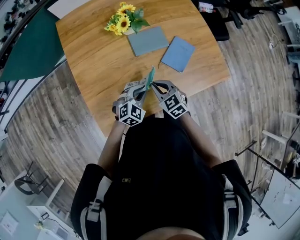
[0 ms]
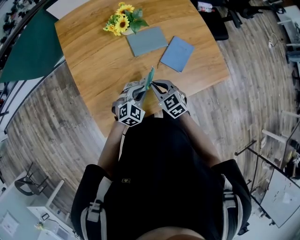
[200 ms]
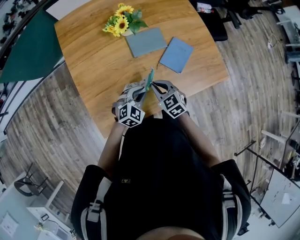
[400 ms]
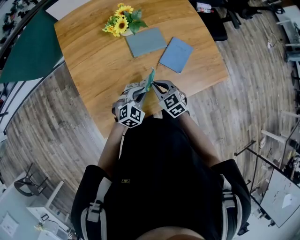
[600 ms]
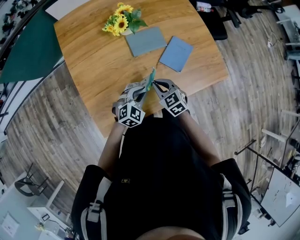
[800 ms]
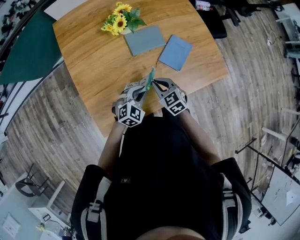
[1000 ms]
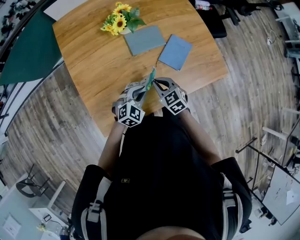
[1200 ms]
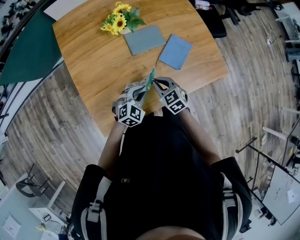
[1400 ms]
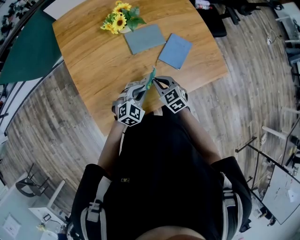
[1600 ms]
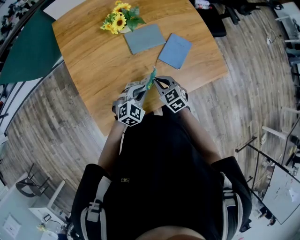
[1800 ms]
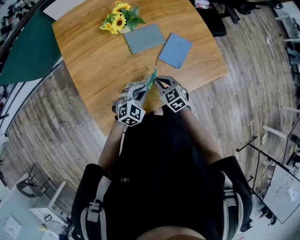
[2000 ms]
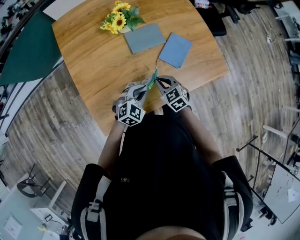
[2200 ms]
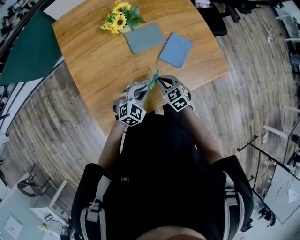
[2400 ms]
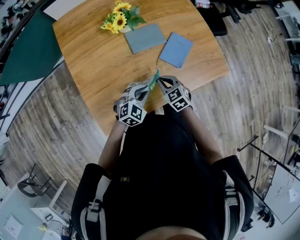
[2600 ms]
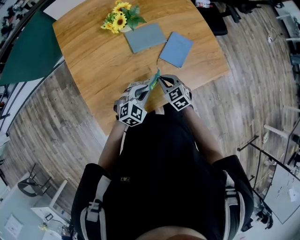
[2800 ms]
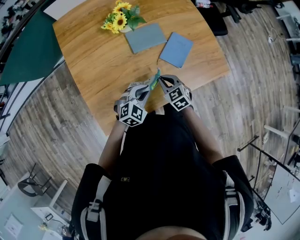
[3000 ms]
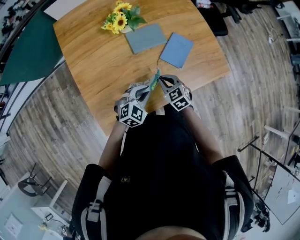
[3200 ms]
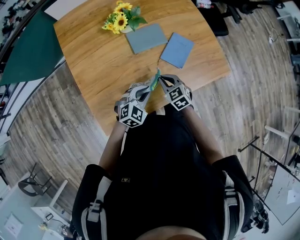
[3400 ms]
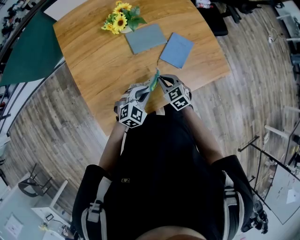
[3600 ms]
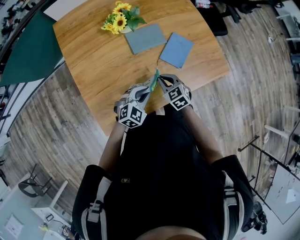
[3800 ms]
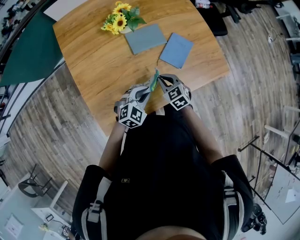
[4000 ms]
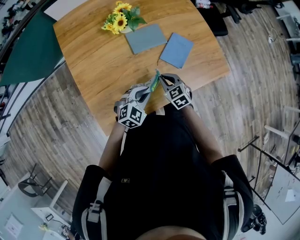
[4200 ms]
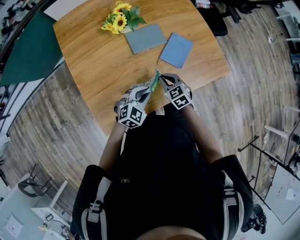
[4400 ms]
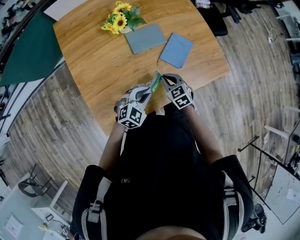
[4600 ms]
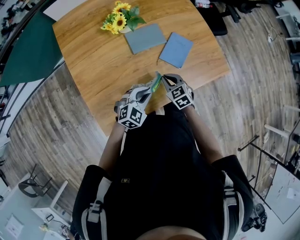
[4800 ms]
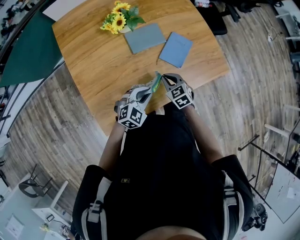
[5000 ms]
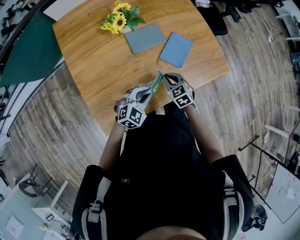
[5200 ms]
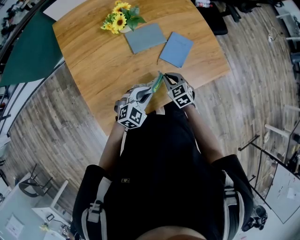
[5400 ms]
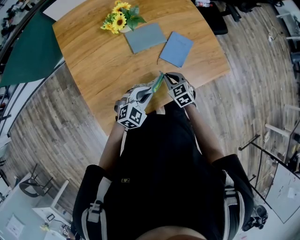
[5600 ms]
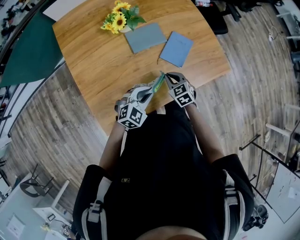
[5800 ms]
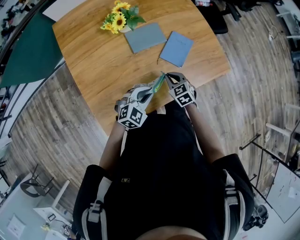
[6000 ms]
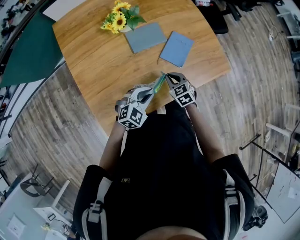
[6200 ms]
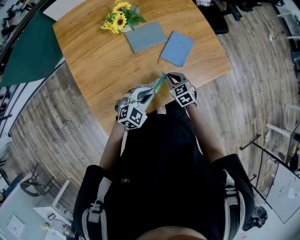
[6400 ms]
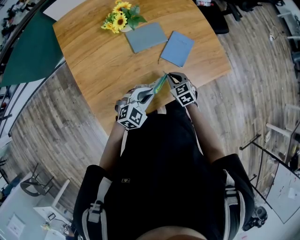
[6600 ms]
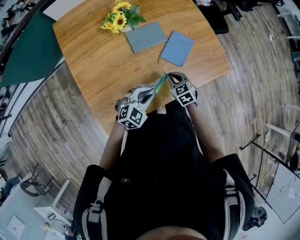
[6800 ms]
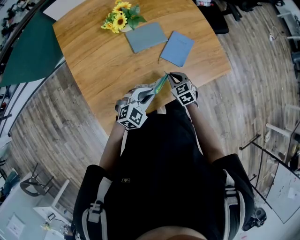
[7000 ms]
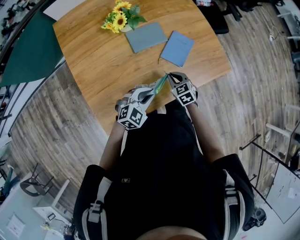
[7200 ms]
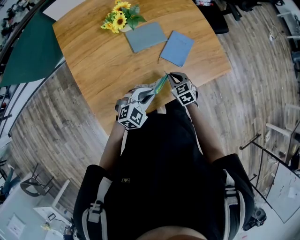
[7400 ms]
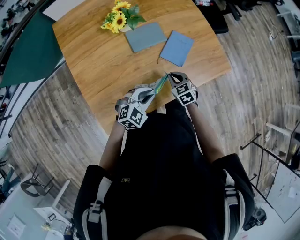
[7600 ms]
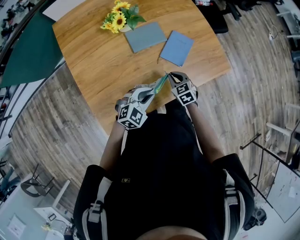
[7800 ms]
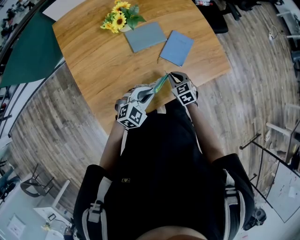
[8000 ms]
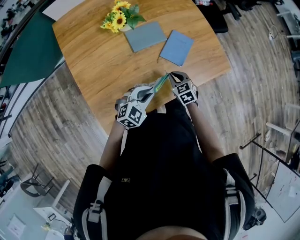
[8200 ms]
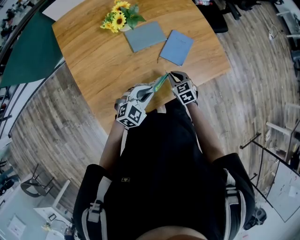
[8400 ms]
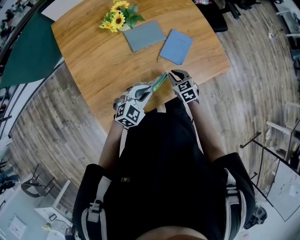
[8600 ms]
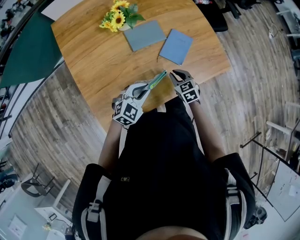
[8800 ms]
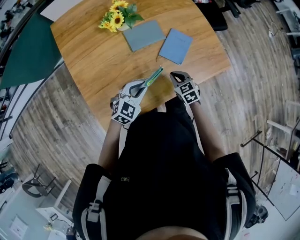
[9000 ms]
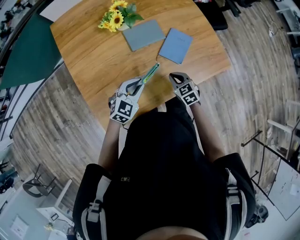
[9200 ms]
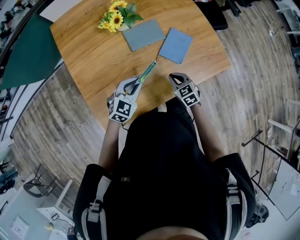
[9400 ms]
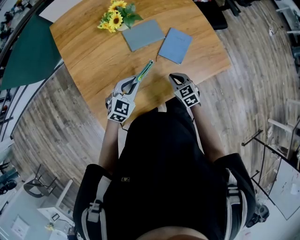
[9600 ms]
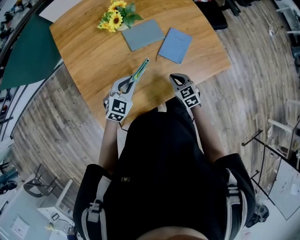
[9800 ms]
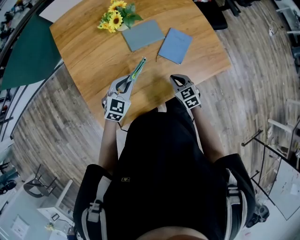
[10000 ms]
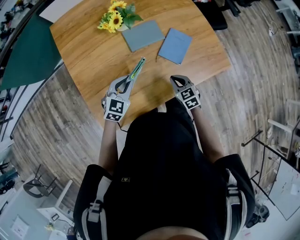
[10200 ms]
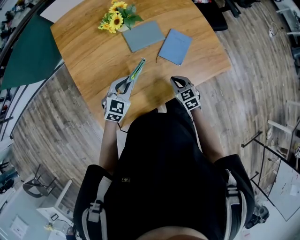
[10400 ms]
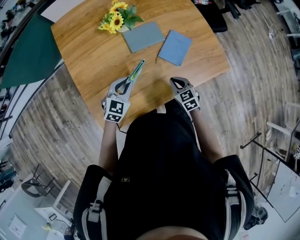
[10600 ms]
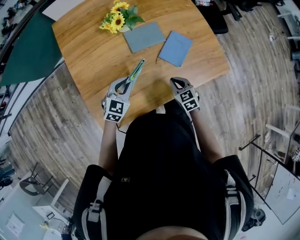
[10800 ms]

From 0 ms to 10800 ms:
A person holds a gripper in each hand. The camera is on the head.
From 0 ms to 3000 ms: The grippers stay close to where they were, moving slightly.
From 3000 ms to 6200 ms: There are only small adjustments of the grippers.
From 6200 ms to 7800 ms: The grippers move only a little.
From 7800 ms to 9200 ms: The left gripper heads to the left, covering approximately 5 cm.
From 9200 ms to 10800 ms: The left gripper moves some 5 cm.

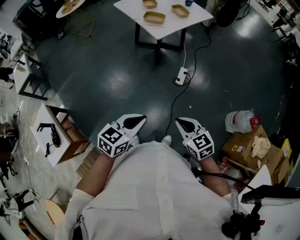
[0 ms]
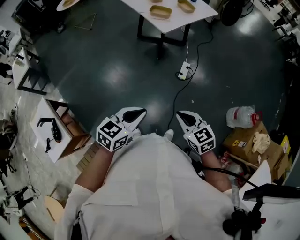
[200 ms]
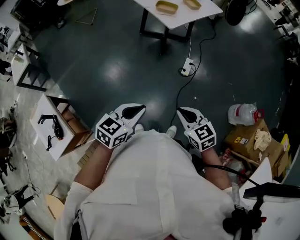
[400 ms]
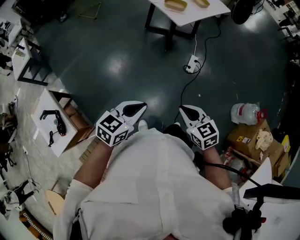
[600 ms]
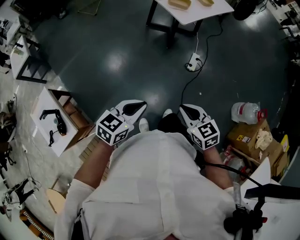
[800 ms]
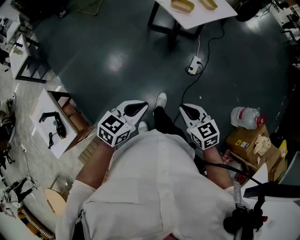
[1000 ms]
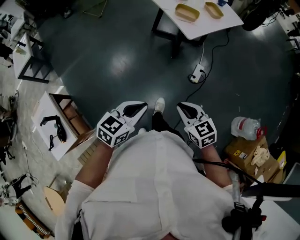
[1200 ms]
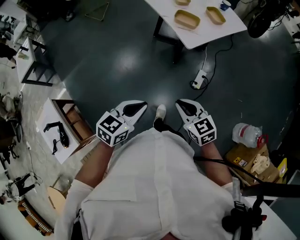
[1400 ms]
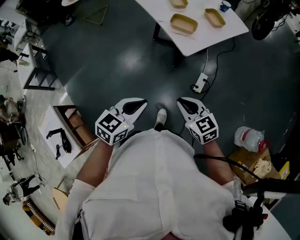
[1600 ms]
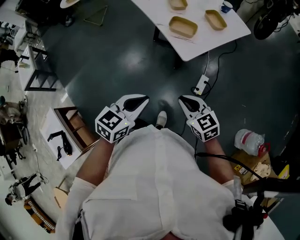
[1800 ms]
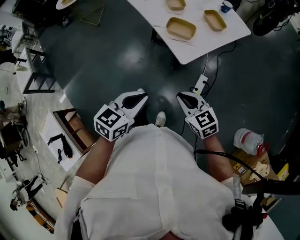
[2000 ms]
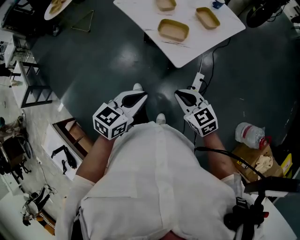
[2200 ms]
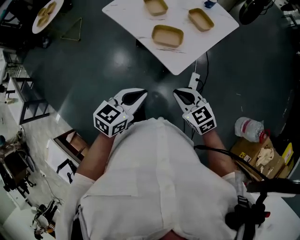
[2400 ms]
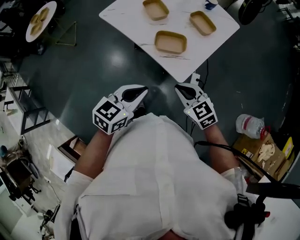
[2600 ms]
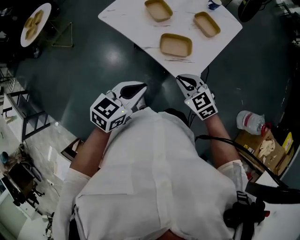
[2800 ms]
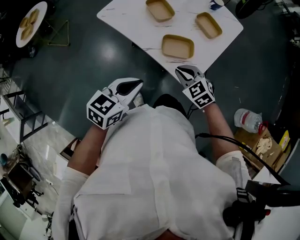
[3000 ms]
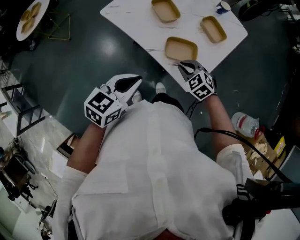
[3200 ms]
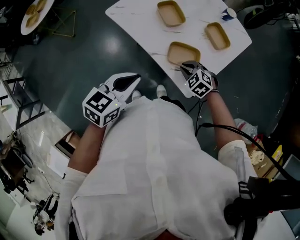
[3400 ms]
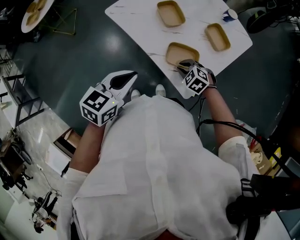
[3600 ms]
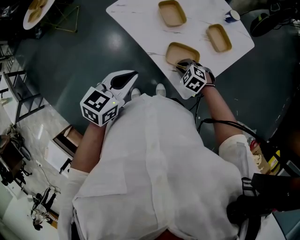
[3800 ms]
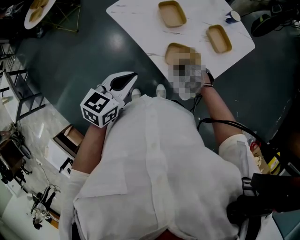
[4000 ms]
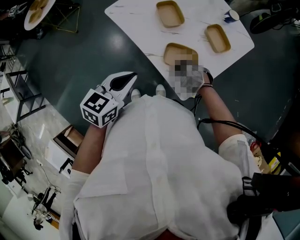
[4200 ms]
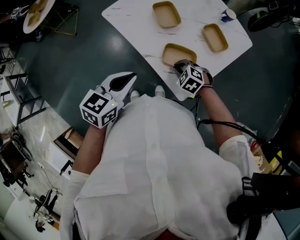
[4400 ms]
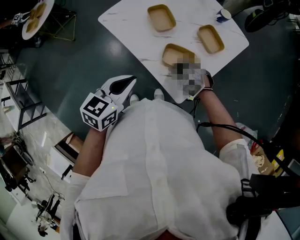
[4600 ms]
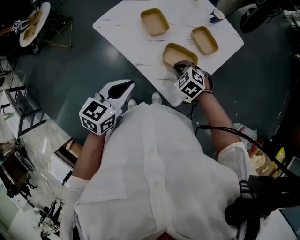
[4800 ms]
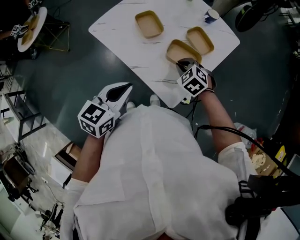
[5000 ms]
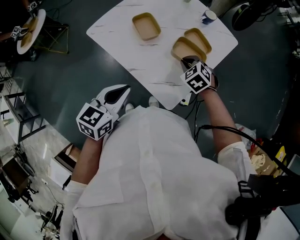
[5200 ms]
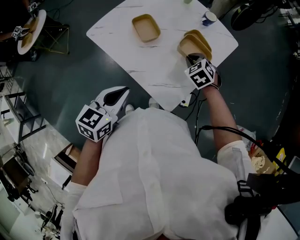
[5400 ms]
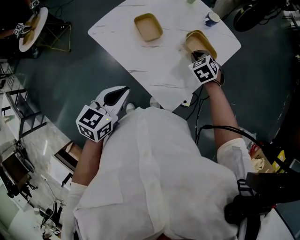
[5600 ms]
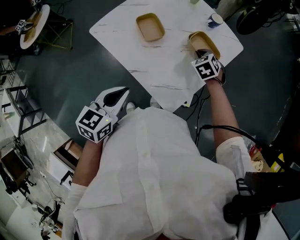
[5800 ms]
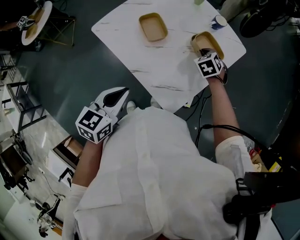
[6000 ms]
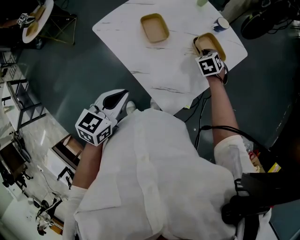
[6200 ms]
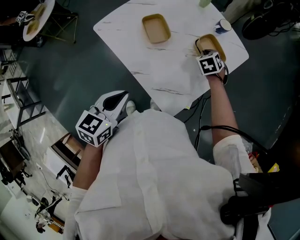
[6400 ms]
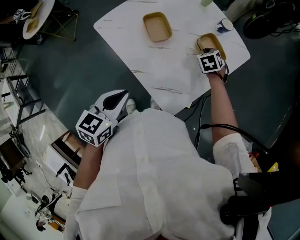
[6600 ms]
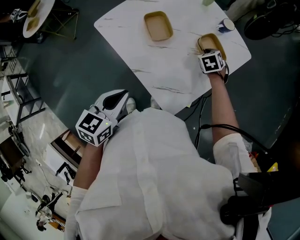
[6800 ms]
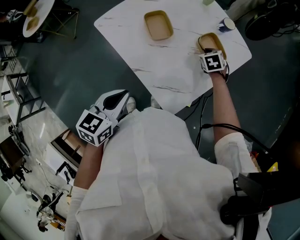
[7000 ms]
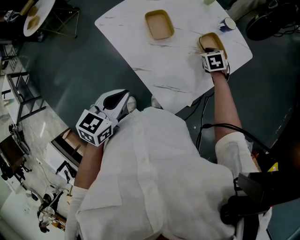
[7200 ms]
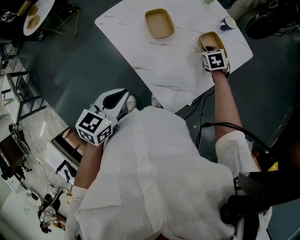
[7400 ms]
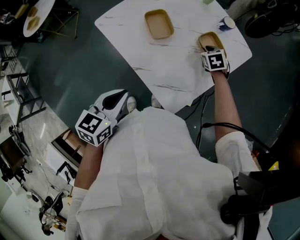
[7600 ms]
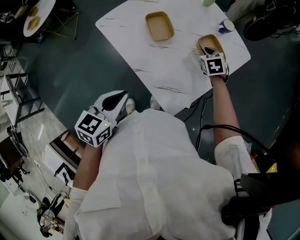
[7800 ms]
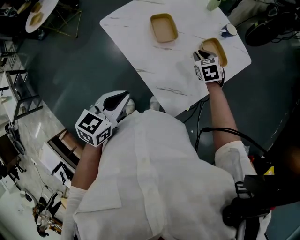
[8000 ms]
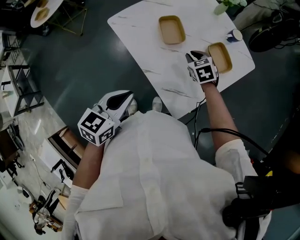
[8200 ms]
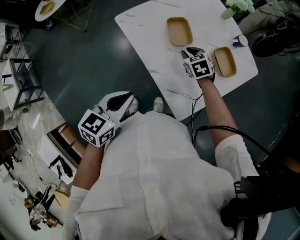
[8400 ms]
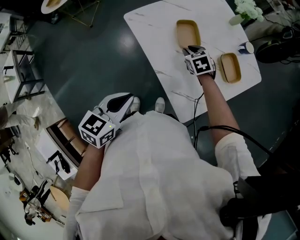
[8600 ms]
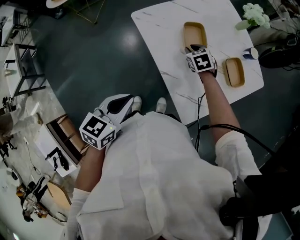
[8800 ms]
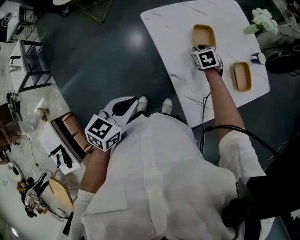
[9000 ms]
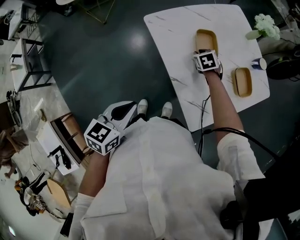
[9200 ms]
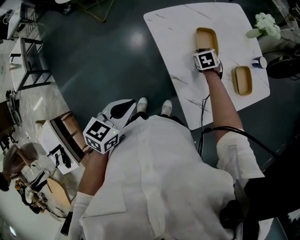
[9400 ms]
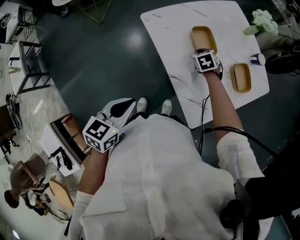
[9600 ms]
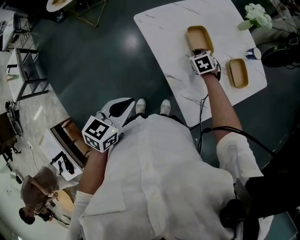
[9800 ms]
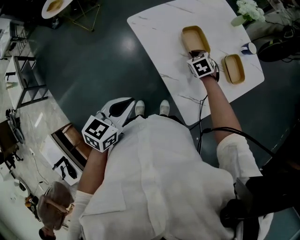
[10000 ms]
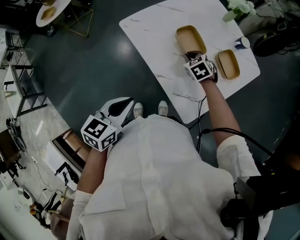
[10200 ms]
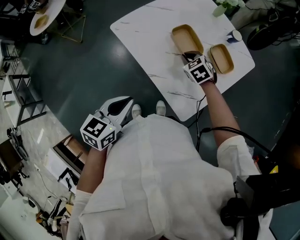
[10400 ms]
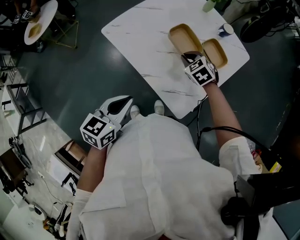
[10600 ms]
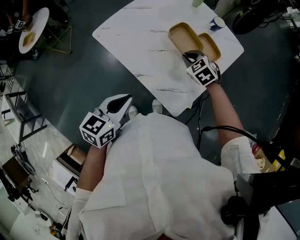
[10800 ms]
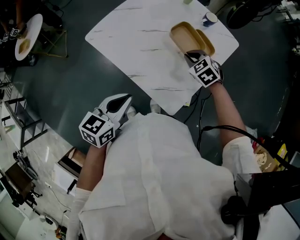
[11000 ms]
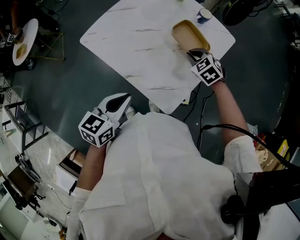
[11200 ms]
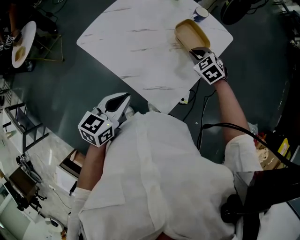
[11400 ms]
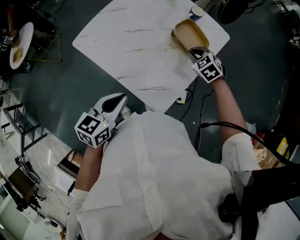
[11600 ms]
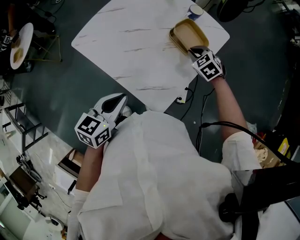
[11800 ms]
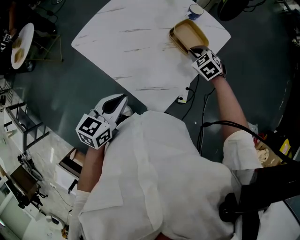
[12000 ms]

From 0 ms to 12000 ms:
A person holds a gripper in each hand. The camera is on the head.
From 0 ms to 1600 ms: The two grippers go some 30 cm forward and to the left.
From 1600 ms to 3000 ms: Both grippers travel together forward, about 35 cm. The right gripper swivels roughly 20 degrees.
From 3000 ms to 4400 ms: The left gripper heads forward, covering approximately 5 cm, while the right gripper goes some 10 cm downward and forward, and swivels roughly 30 degrees.
From 4400 ms to 6000 ms: The right gripper moves forward and to the right, roughly 25 cm, and changes its angle by roughly 40 degrees.
From 6000 ms to 7600 ms: The grippers move only a little.
From 7600 ms to 9000 ms: The right gripper moves to the left, approximately 25 cm, while the left gripper heads to the left, covering roughly 10 cm.
From 9000 ms to 10400 ms: The left gripper changes place by approximately 5 cm. Meanwhile the right gripper shifts some 10 cm backward, to the right and upward.
From 10400 ms to 12000 ms: The left gripper moves to the right, about 15 cm; the right gripper is displaced to the right by about 25 cm.

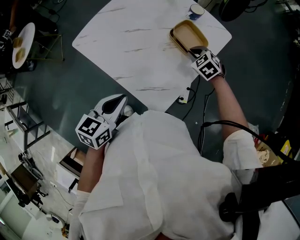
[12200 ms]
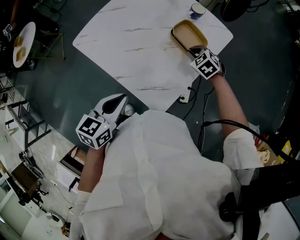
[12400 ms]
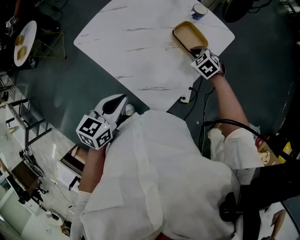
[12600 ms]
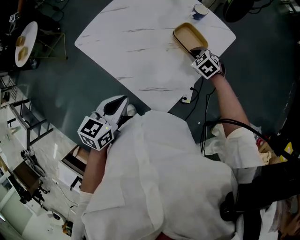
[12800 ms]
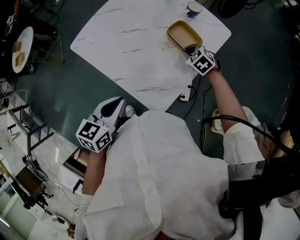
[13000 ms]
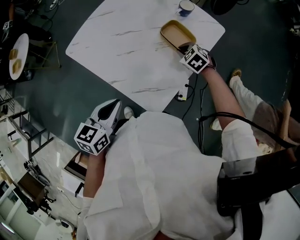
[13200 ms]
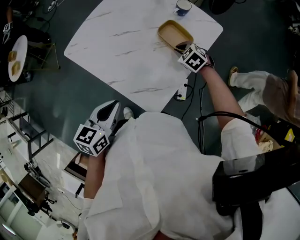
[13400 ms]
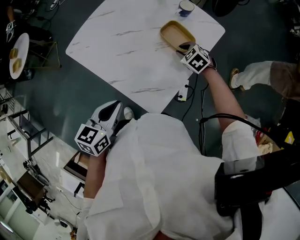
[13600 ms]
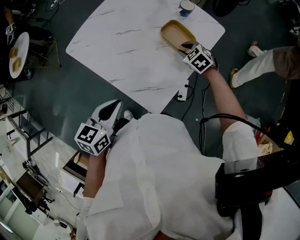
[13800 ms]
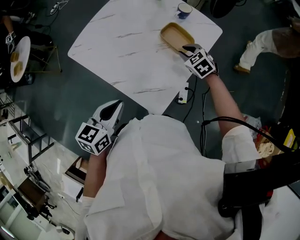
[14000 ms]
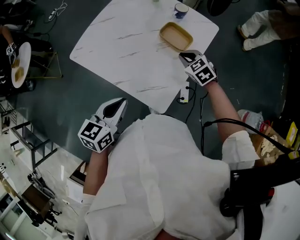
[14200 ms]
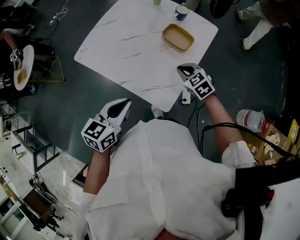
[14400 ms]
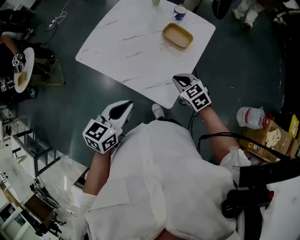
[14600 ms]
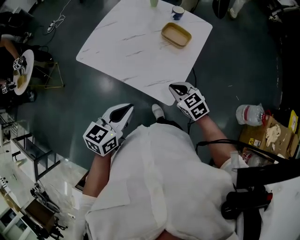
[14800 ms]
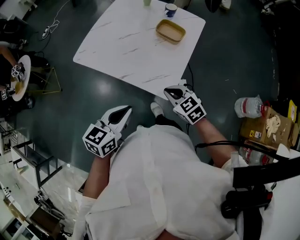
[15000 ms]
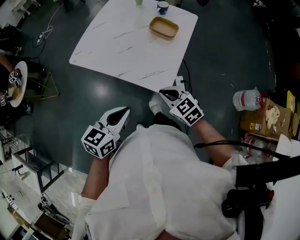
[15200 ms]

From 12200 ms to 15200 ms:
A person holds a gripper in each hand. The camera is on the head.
From 12200 ms to 13800 ms: The grippers move only a little.
From 13800 ms to 15200 ms: The right gripper shifts about 35 cm backward, changes its angle by approximately 30 degrees, and closes up. The left gripper moves backward, some 15 cm, and swivels approximately 20 degrees.
